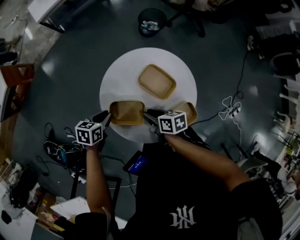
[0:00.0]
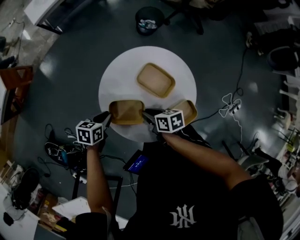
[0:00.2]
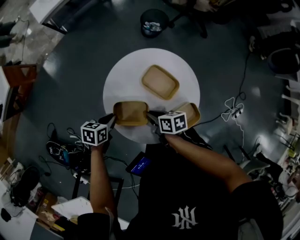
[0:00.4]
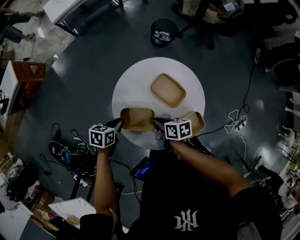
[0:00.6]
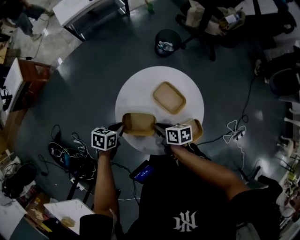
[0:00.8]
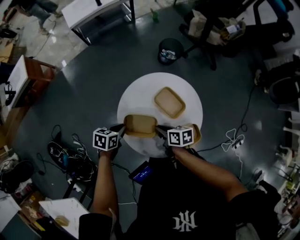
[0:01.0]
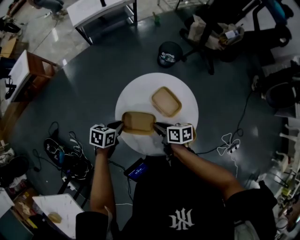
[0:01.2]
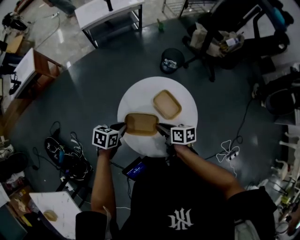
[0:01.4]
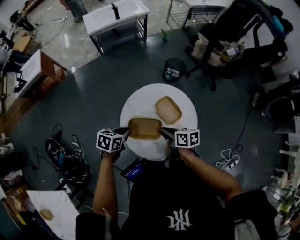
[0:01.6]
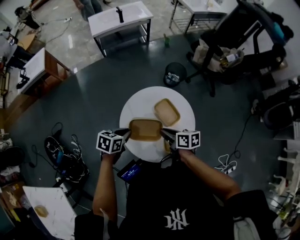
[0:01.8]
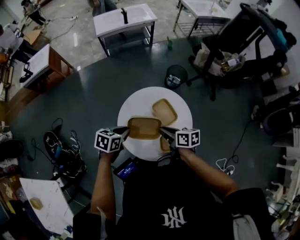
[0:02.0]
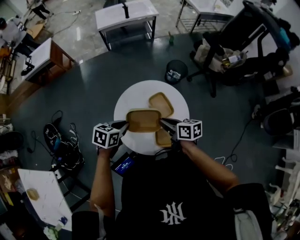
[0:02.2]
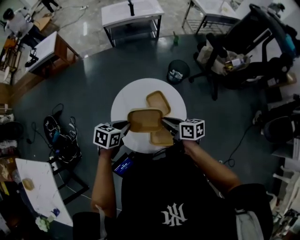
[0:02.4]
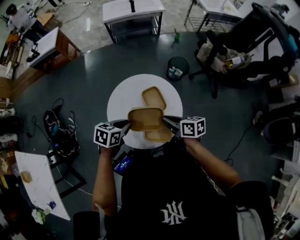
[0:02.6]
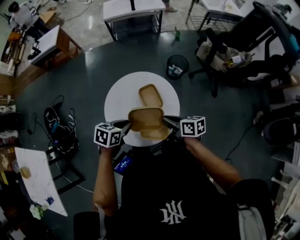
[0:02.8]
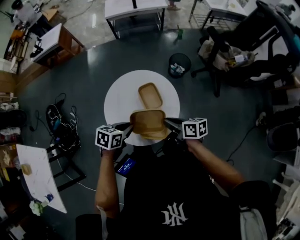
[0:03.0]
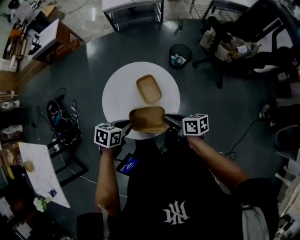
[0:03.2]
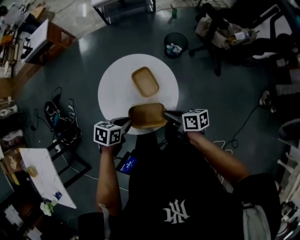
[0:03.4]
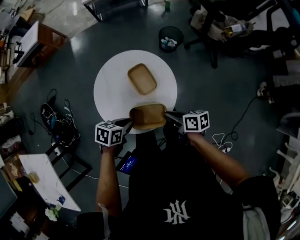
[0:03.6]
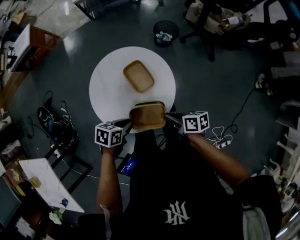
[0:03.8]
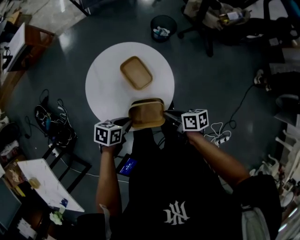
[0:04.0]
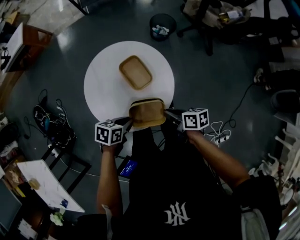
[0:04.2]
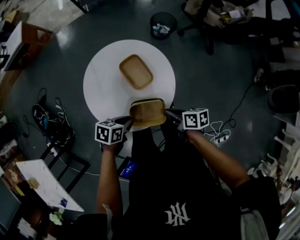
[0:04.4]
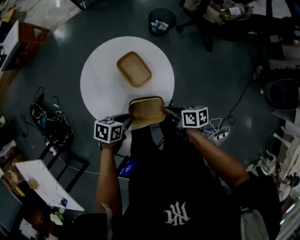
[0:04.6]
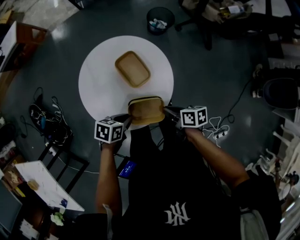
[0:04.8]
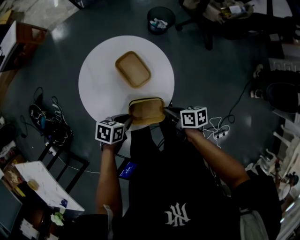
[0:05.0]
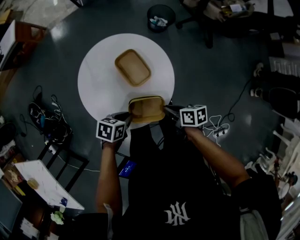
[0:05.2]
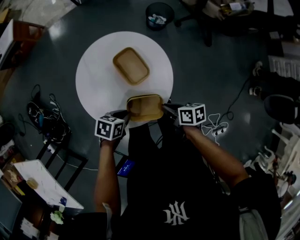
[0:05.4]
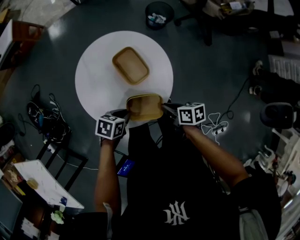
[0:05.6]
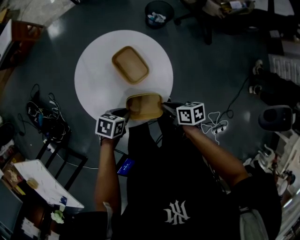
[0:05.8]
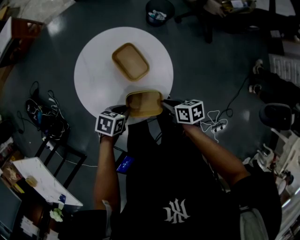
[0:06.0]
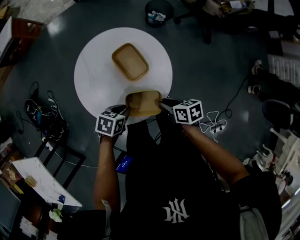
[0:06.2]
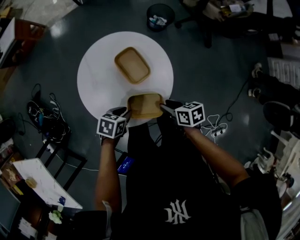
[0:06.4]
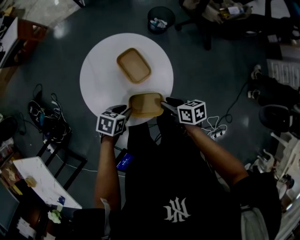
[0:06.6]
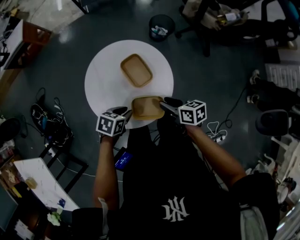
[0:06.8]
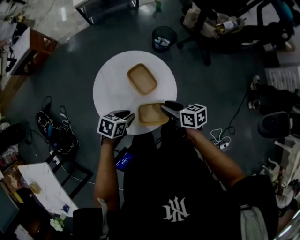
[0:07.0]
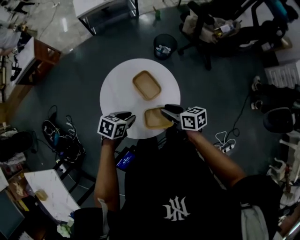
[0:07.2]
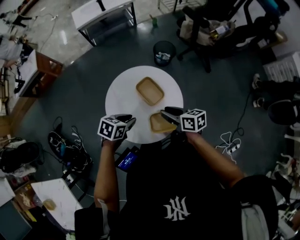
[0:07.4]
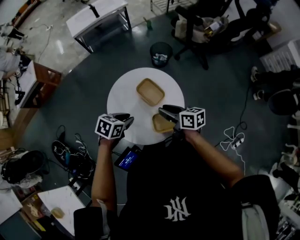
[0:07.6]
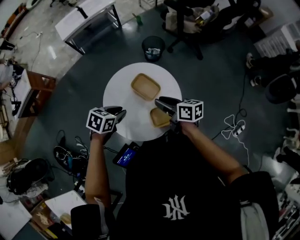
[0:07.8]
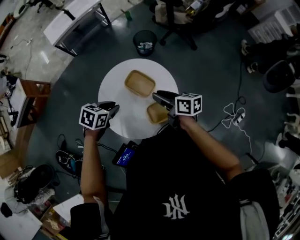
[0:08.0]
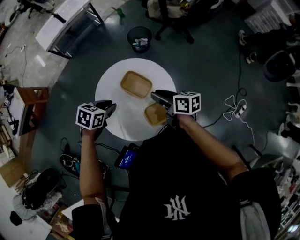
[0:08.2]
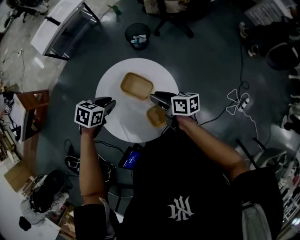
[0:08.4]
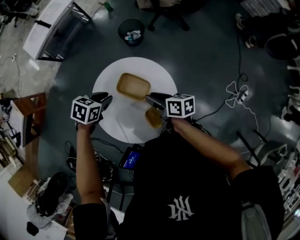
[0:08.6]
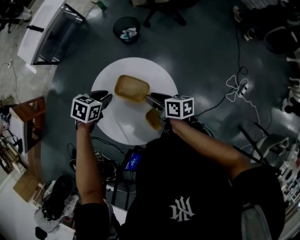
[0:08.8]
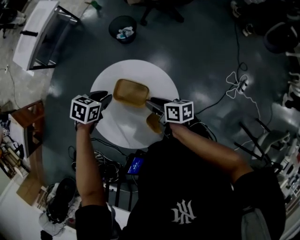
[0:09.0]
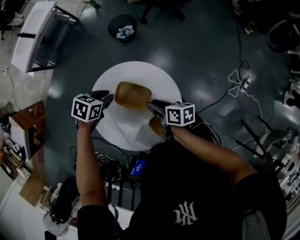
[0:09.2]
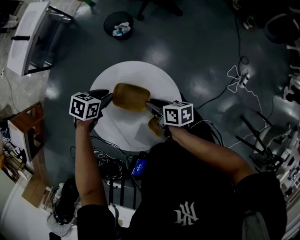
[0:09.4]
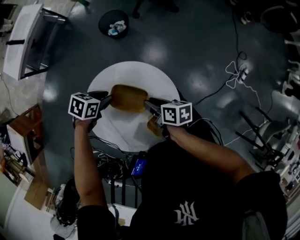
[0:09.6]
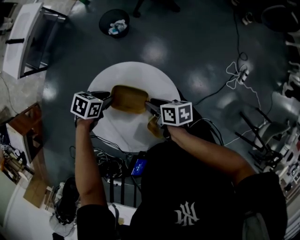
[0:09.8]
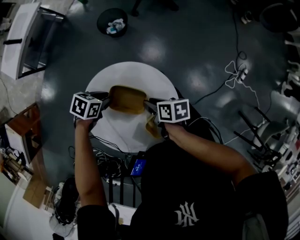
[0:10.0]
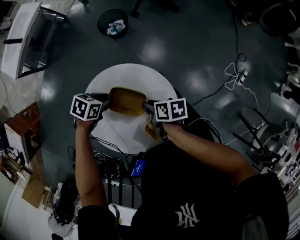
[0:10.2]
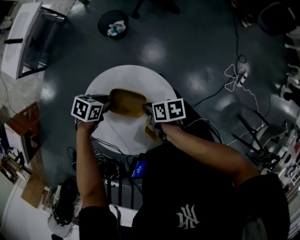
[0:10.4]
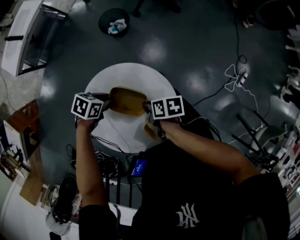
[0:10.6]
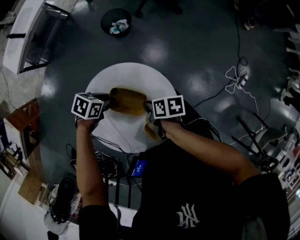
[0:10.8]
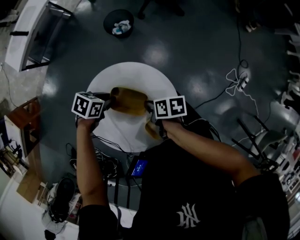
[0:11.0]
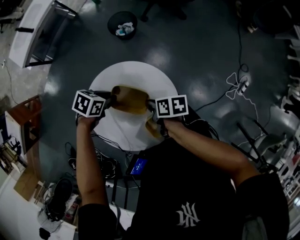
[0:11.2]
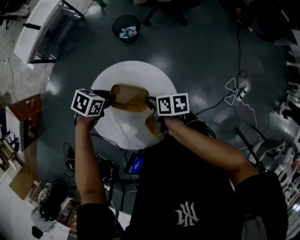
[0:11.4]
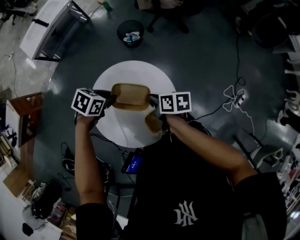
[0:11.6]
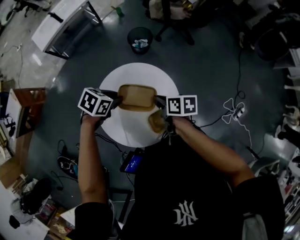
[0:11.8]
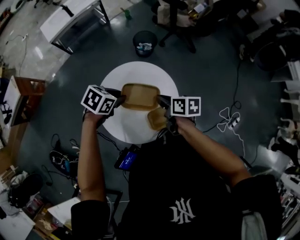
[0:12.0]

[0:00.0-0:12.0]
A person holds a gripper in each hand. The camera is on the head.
0:00.0 to 0:01.6: Both grippers move upward, approximately 10 cm.
0:01.6 to 0:03.0: The right gripper travels to the right by some 15 cm, and swivels some 20 degrees; the left gripper moves to the right and backward, roughly 20 cm.
0:03.0 to 0:04.4: Both grippers move downward, about 10 cm.
0:04.4 to 0:06.0: The grippers make only small movements.
0:06.0 to 0:07.6: The left gripper moves some 20 cm, and turns by approximately 20 degrees, while the right gripper goes approximately 15 cm upward, turns by roughly 30 degrees, and opens.
0:07.6 to 0:09.0: The right gripper travels downward by about 10 cm, and changes its angle by approximately 30 degrees. The left gripper changes place by about 20 cm, and turns by approximately 30 degrees.
0:09.0 to 0:10.4: The left gripper heads downward, covering some 5 cm; the right gripper changes its angle by roughly 20 degrees.
0:10.4 to 0:12.0: Both grippers move upward, some 15 cm. The left gripper swivels some 20 degrees; the right gripper turns by some 30 degrees.

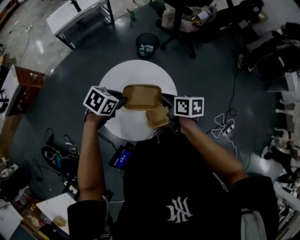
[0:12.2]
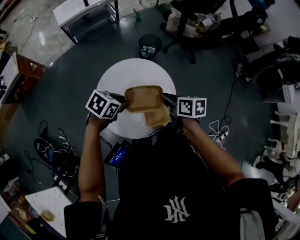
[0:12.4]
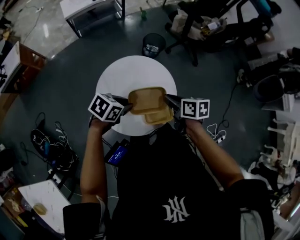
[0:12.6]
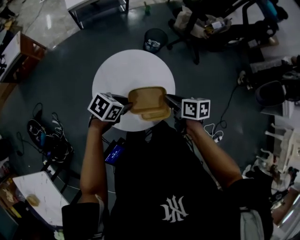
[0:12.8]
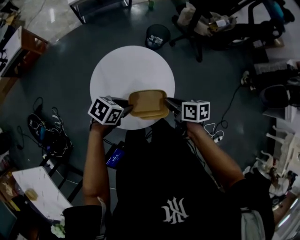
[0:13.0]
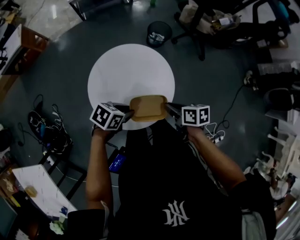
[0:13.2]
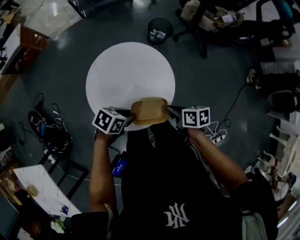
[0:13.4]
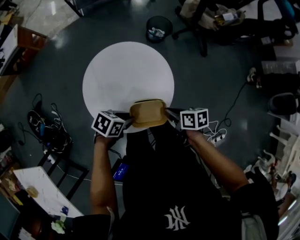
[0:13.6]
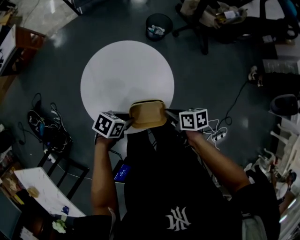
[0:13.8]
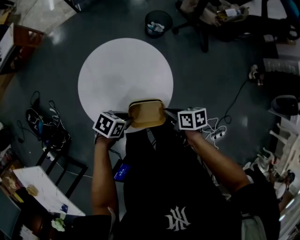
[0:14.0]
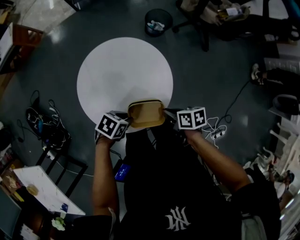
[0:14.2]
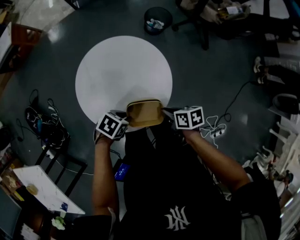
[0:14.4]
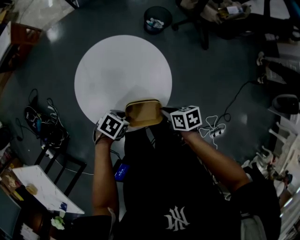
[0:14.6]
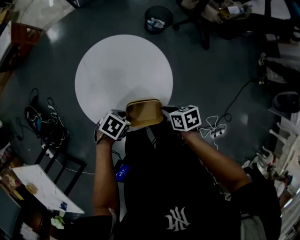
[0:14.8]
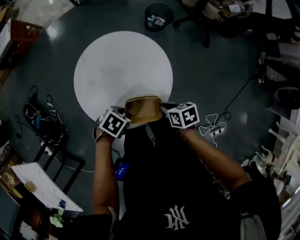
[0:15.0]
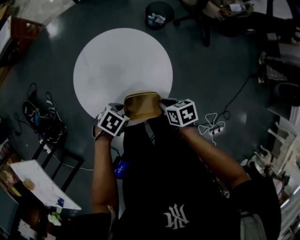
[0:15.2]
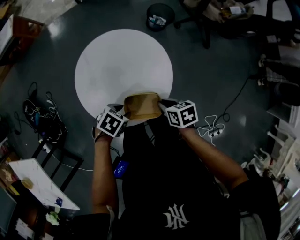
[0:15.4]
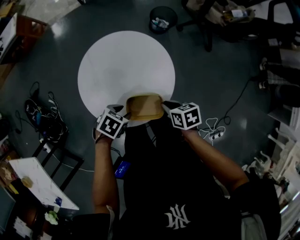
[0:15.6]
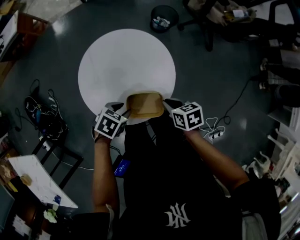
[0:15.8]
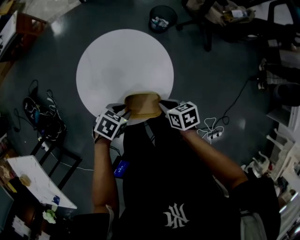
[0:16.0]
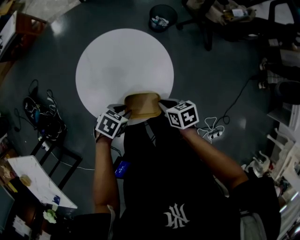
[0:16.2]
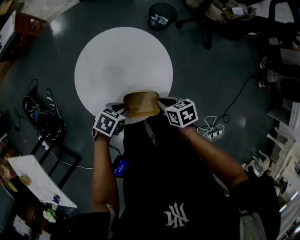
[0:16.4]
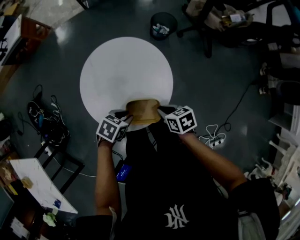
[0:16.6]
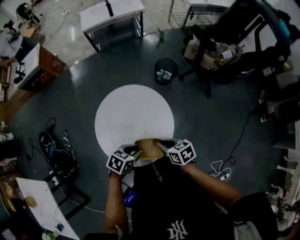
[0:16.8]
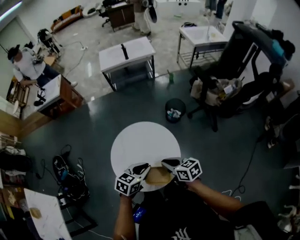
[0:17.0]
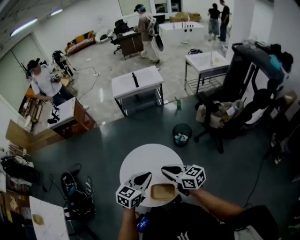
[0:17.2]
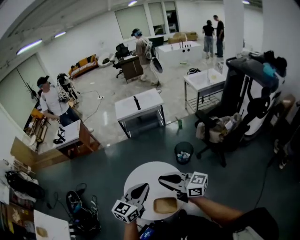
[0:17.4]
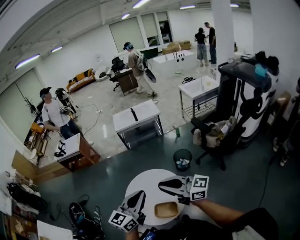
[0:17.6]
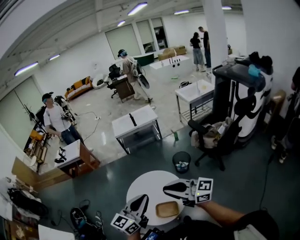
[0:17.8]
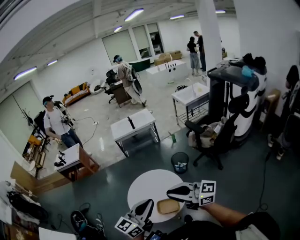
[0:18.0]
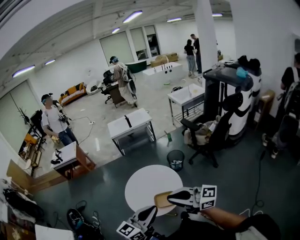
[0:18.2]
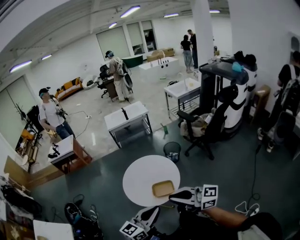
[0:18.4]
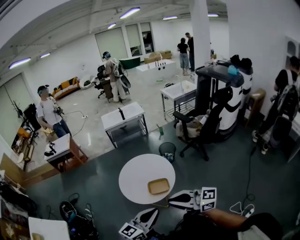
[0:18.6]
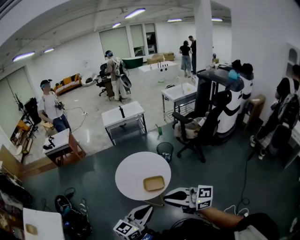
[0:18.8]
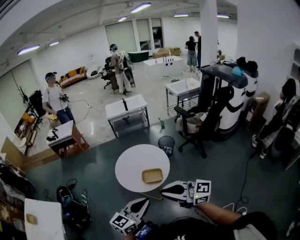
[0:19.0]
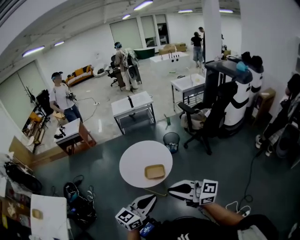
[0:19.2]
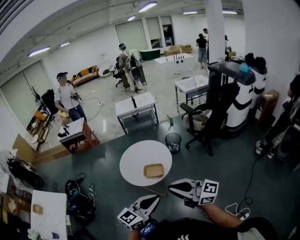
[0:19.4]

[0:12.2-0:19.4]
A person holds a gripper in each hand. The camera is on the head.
0:12.2 to 0:13.6: The left gripper changes place by about 15 cm, and turns by approximately 30 degrees; the right gripper moves roughly 15 cm, and swivels roughly 20 degrees.
0:13.6 to 0:15.0: The left gripper moves roughly 5 cm.
0:15.0 to 0:16.6: The grippers make only small movements.
0:16.6 to 0:18.0: Both grippers travel together upward, roughly 40 cm. The right gripper angles its fingers upward, by roughly 70 degrees, while the left gripper tips its fingers upward by approximately 60 degrees, and closes.
0:18.0 to 0:19.4: Both grippers travel together backward, about 25 cm.

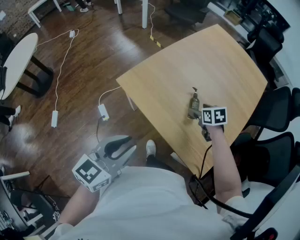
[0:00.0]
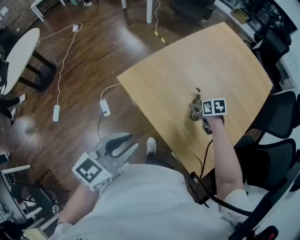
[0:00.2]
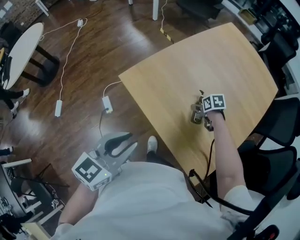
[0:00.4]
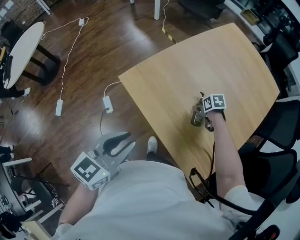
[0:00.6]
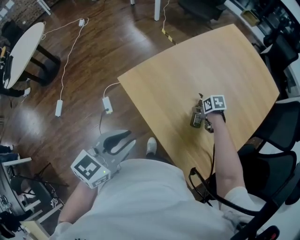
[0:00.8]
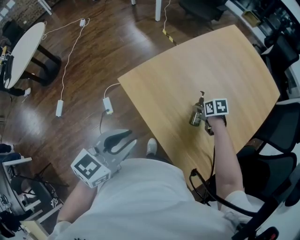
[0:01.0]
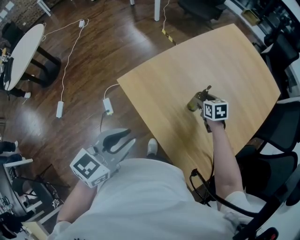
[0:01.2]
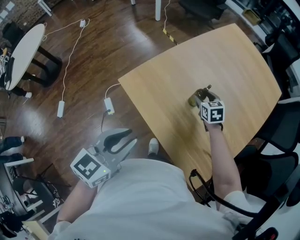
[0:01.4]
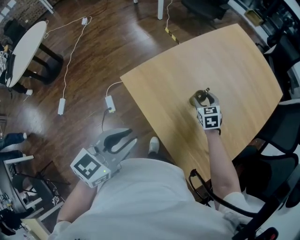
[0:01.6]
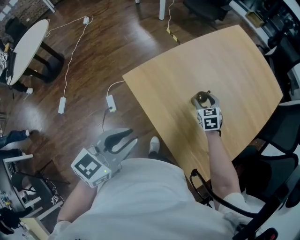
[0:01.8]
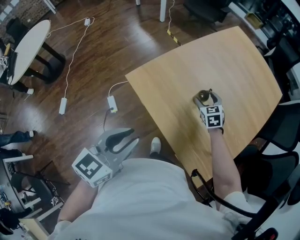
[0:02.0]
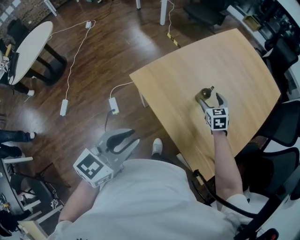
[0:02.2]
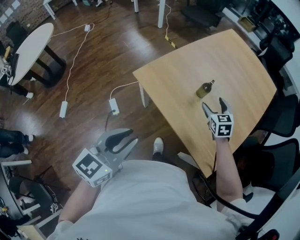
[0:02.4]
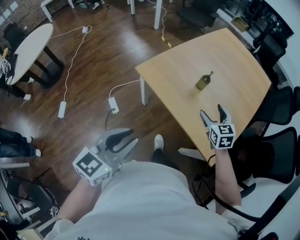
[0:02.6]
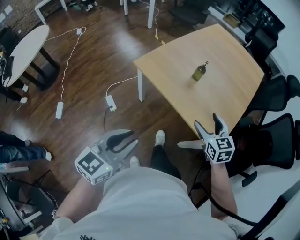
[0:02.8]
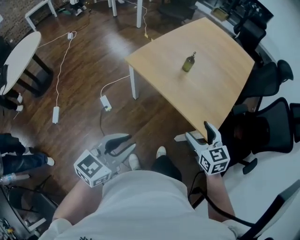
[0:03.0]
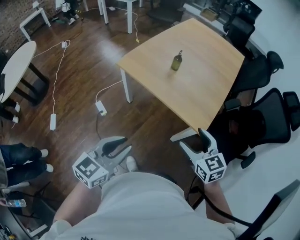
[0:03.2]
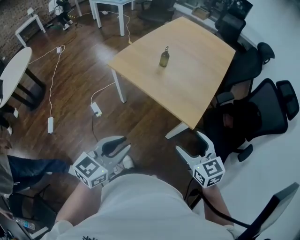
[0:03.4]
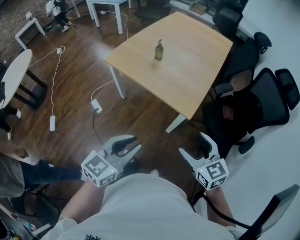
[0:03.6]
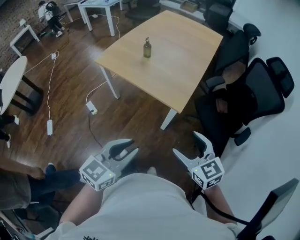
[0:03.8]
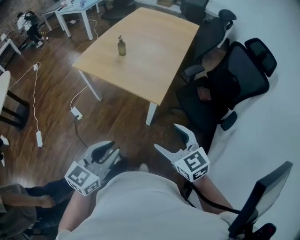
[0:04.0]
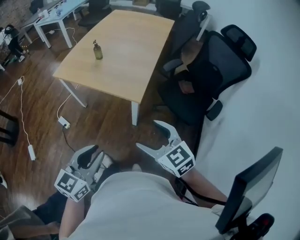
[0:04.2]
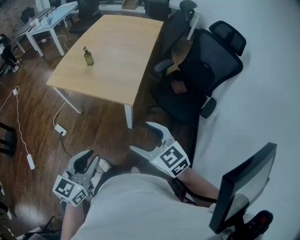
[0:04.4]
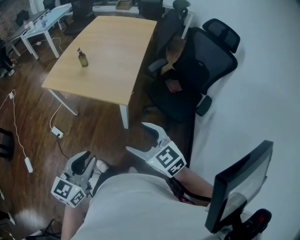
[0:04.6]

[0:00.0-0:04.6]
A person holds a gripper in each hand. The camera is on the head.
0:00.0 to 0:01.6: The right gripper travels downward and back again, roughly 10 cm each way, and swivels about 30 degrees, while the left gripper ends up about 5 cm from where it was.
0:01.6 to 0:03.0: The left gripper is displaced backward by roughly 20 cm. The right gripper moves backward, about 40 cm.
0:03.0 to 0:04.6: The right gripper shifts about 25 cm backward and to the right. The left gripper goes about 20 cm to the right and backward.
